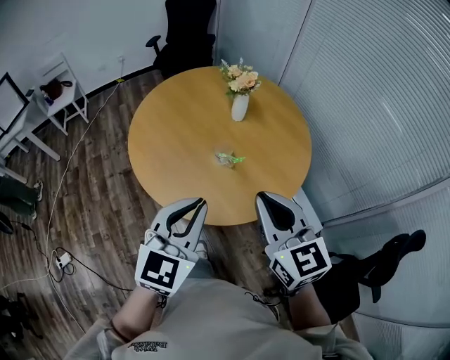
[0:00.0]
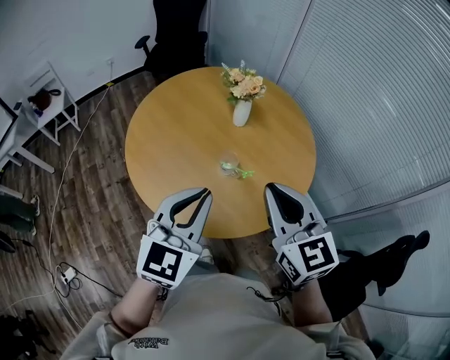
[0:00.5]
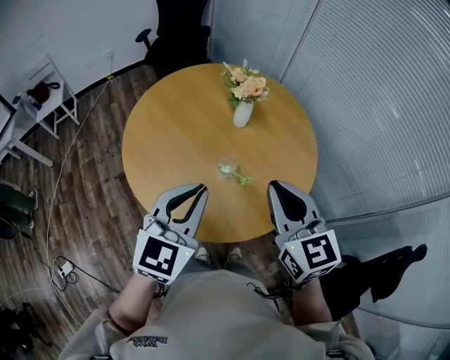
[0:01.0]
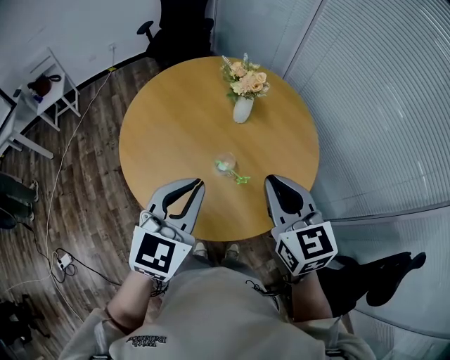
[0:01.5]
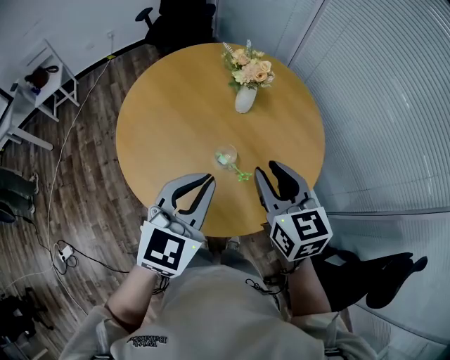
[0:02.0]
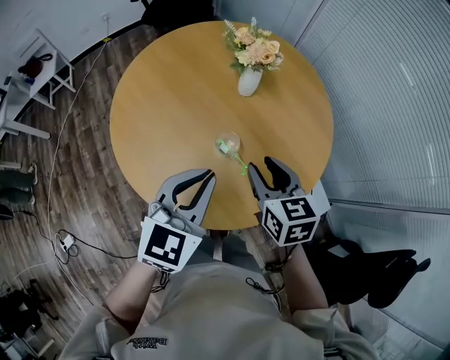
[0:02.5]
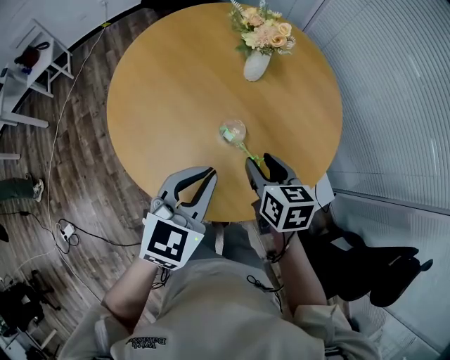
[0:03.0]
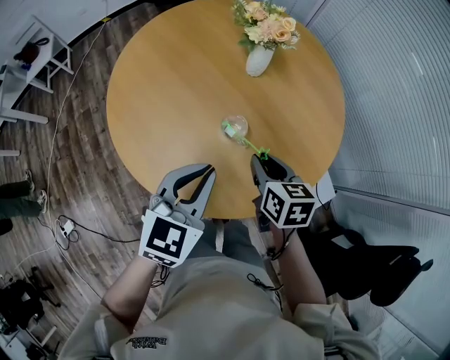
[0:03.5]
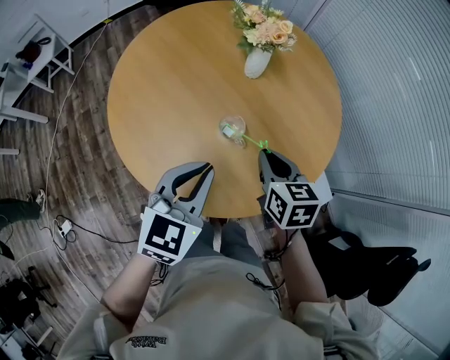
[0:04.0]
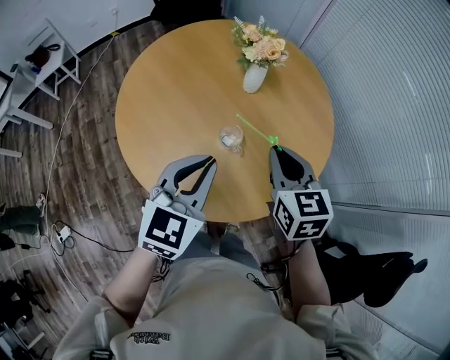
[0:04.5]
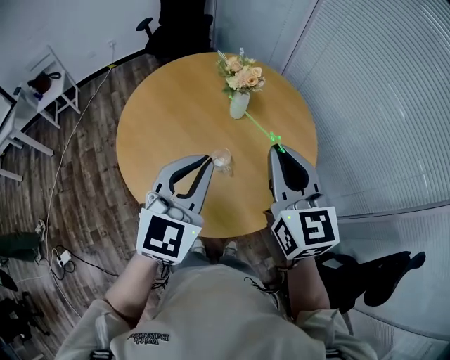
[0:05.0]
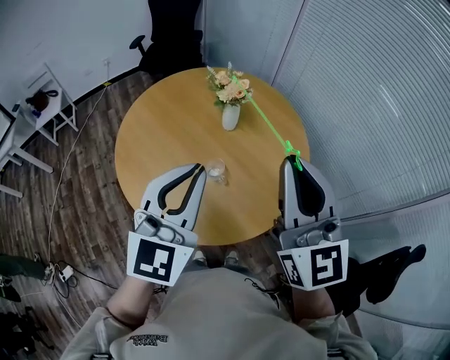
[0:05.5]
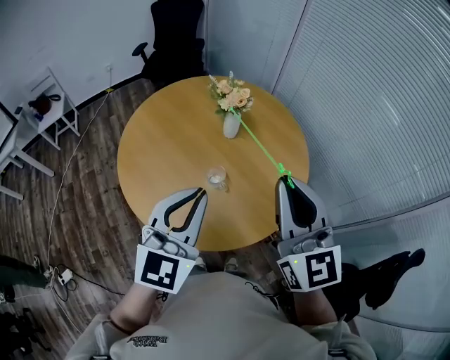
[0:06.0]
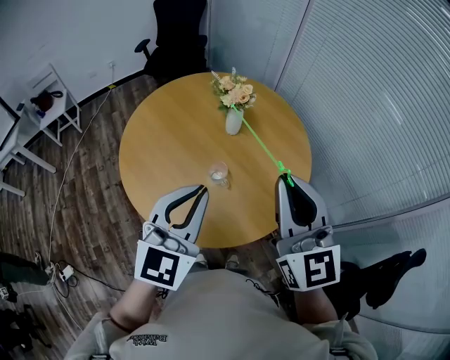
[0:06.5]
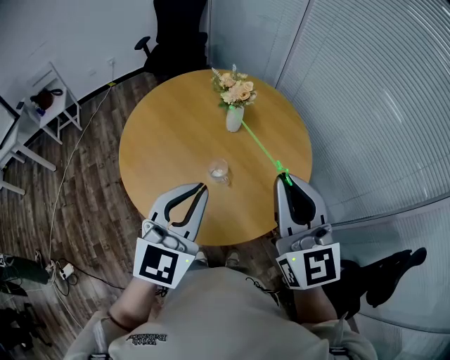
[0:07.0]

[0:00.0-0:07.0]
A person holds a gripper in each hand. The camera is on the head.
0:00.0 to 0:02.0: Both grippers travel together forward, some 15 cm.
0:02.0 to 0:03.5: The left gripper goes about 10 cm downward. The right gripper goes about 20 cm downward, and turns by some 30 degrees.
0:03.5 to 0:05.0: The right gripper is displaced upward by roughly 30 cm, and angles its fingers upward, by roughly 30 degrees. The left gripper shifts roughly 15 cm upward, and turns by about 20 degrees.
0:05.0 to 0:07.0: Both grippers travel together backward, about 5 cm.

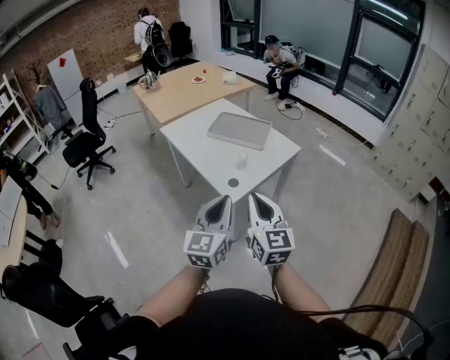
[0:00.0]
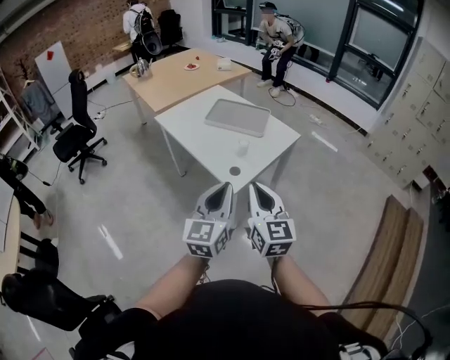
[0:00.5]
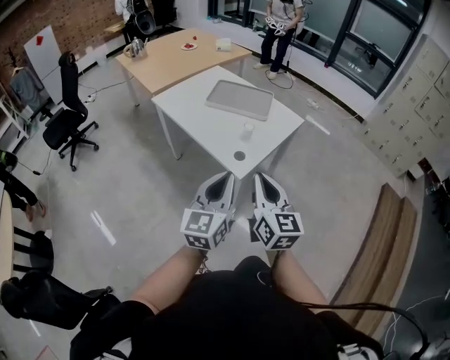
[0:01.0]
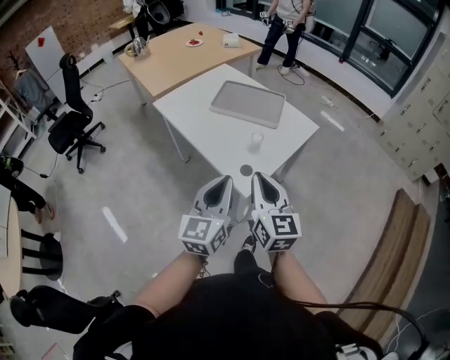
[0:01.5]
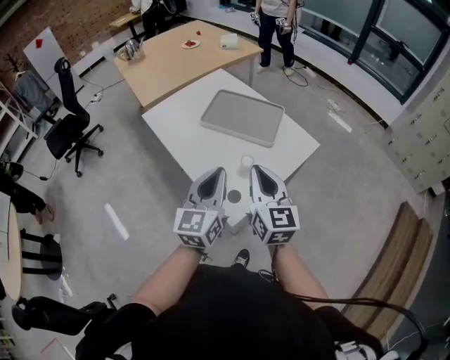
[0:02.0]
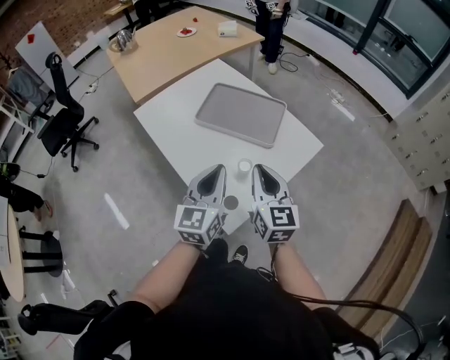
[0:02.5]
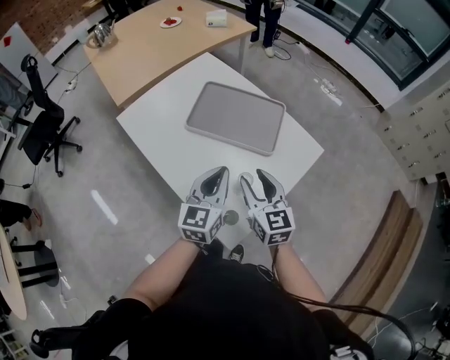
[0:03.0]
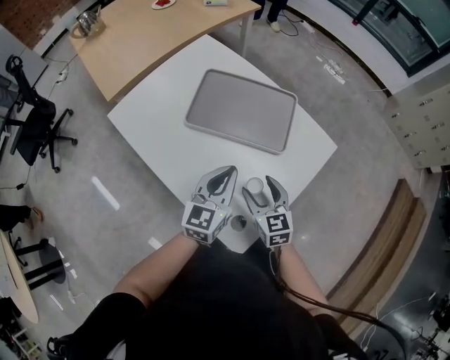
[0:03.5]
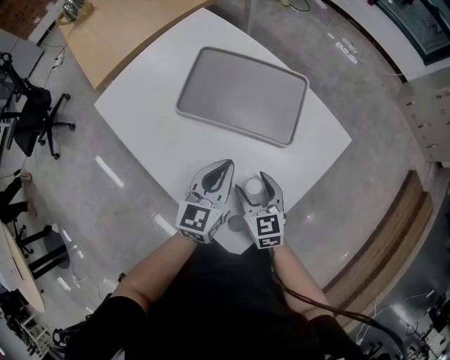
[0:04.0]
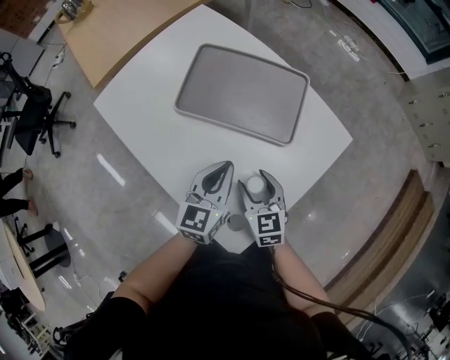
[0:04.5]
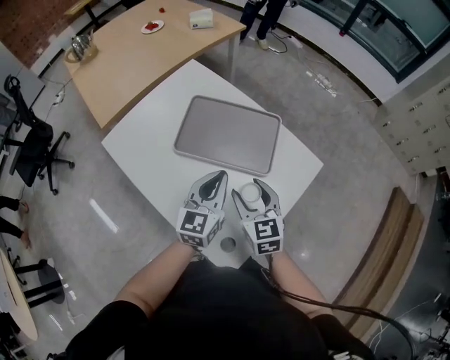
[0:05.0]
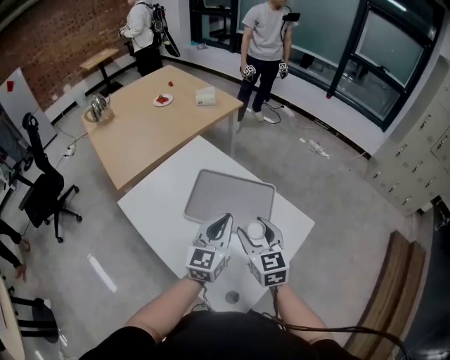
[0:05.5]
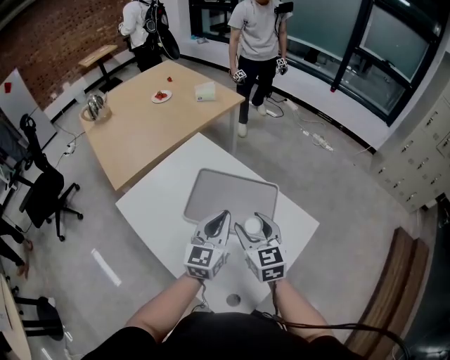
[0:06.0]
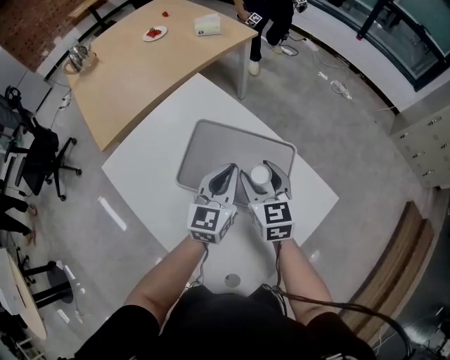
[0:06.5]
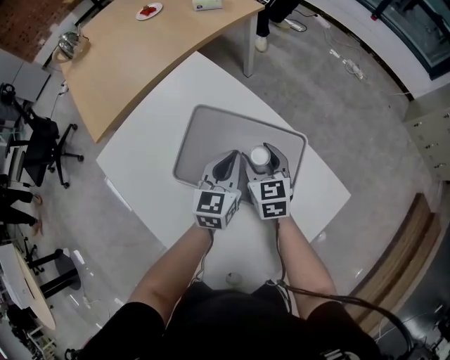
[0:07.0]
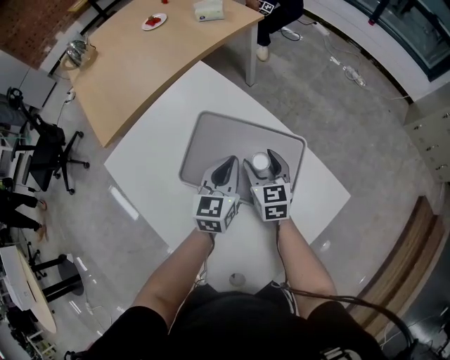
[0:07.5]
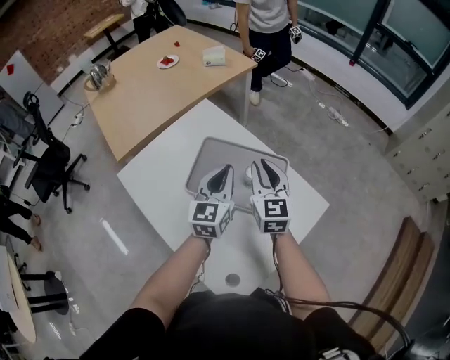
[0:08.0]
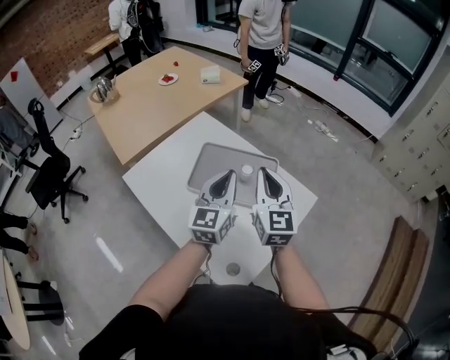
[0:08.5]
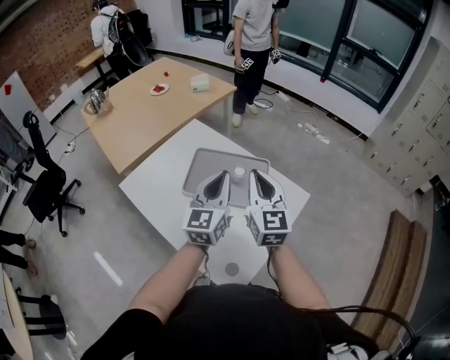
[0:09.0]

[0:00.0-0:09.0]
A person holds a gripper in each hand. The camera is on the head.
0:00.0 to 0:02.0: The two grippers go roughly 30 cm forward.
0:02.0 to 0:04.5: The left gripper goes roughly 35 cm forward and downward, and turns by about 20 degrees. Meanwhile the right gripper goes approximately 35 cm downward and forward, swivels about 30 degrees, and opens its fingers.
0:04.5 to 0:07.0: The grippers both shift forward by approximately 25 cm.
0:07.0 to 0:09.0: Both grippers travel together upward and backward, approximately 35 cm. The left gripper swivels approximately 20 degrees. Meanwhile the right gripper rotates roughly 30 degrees, and closes.

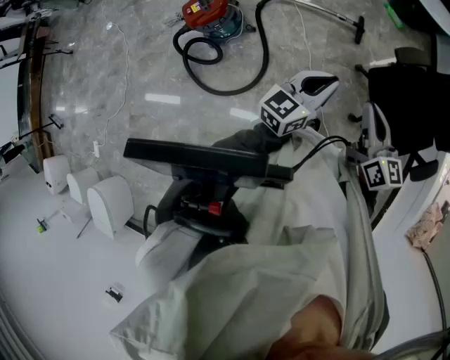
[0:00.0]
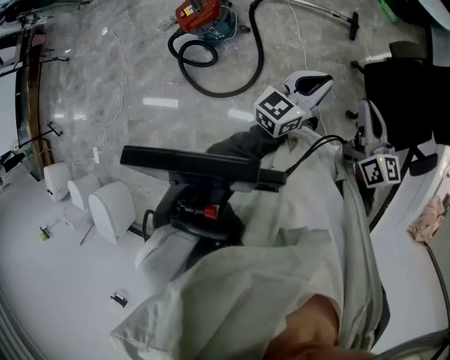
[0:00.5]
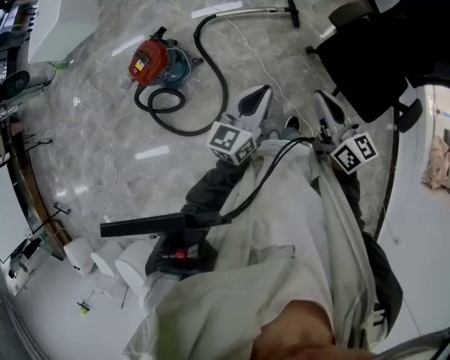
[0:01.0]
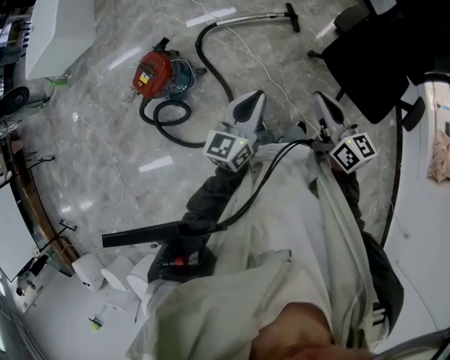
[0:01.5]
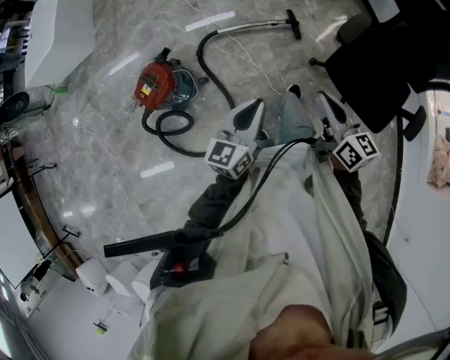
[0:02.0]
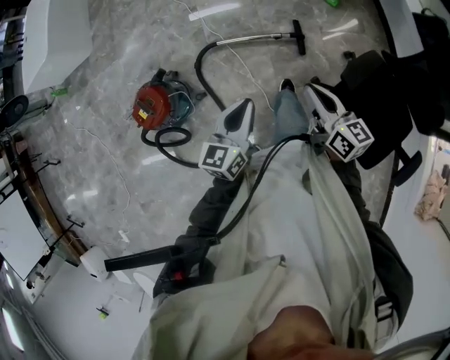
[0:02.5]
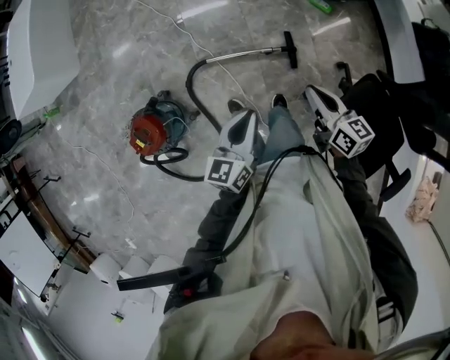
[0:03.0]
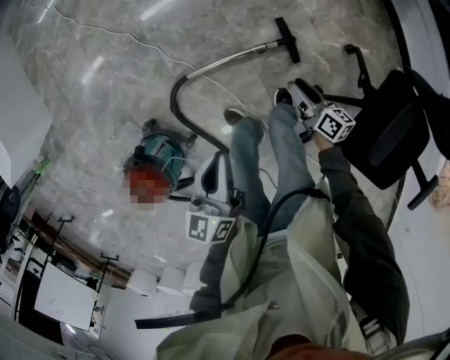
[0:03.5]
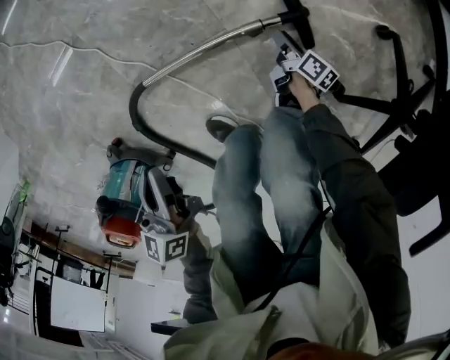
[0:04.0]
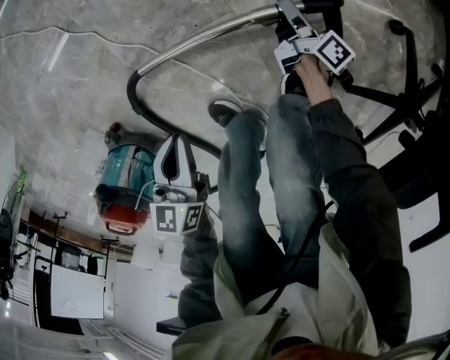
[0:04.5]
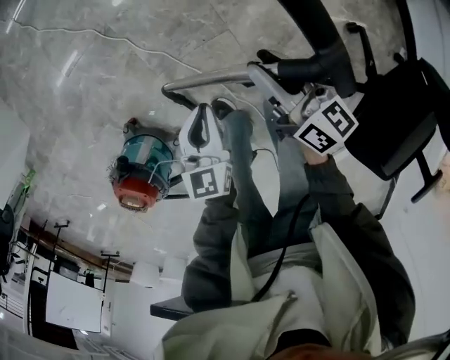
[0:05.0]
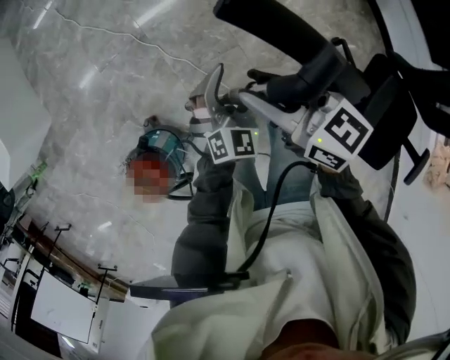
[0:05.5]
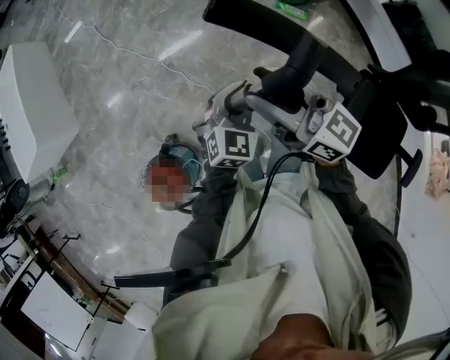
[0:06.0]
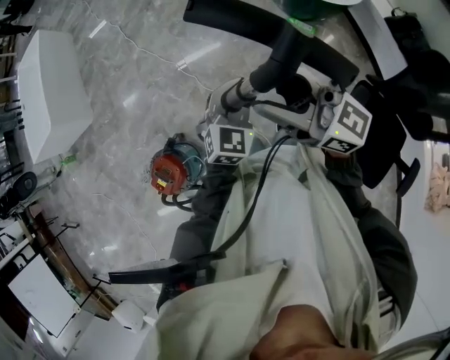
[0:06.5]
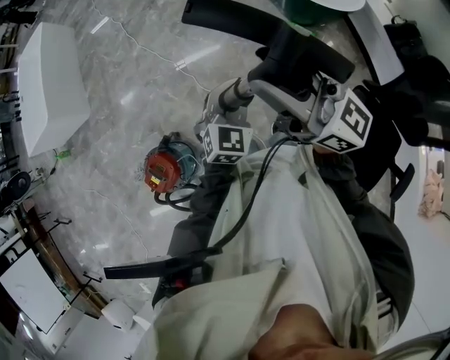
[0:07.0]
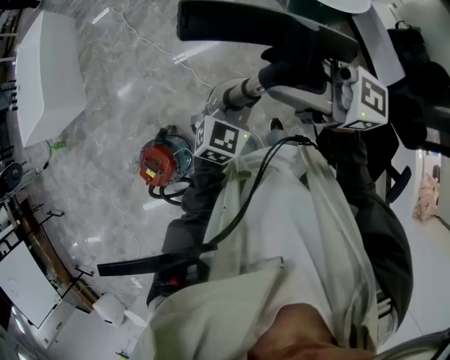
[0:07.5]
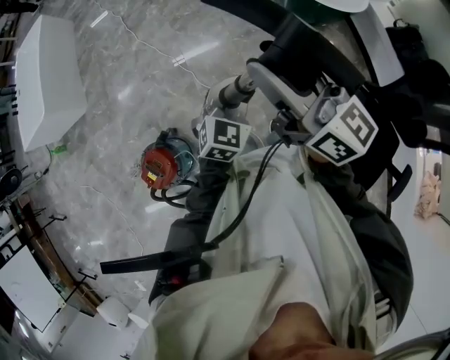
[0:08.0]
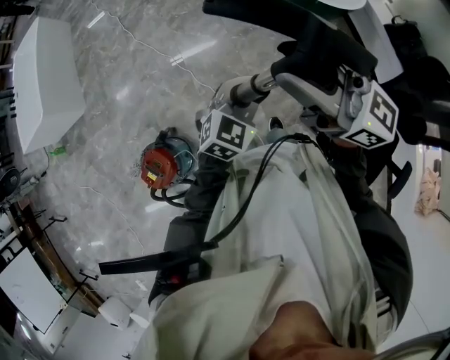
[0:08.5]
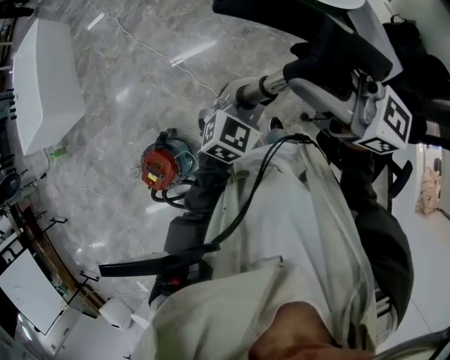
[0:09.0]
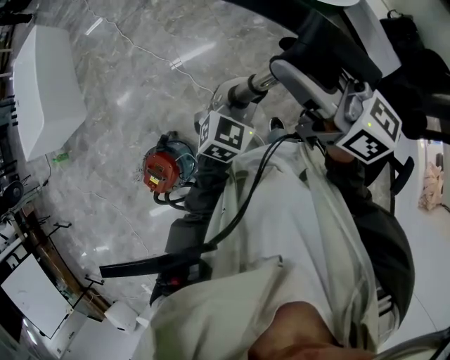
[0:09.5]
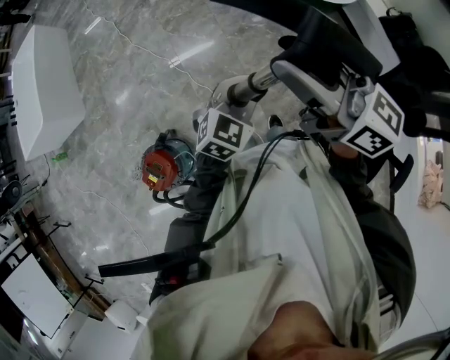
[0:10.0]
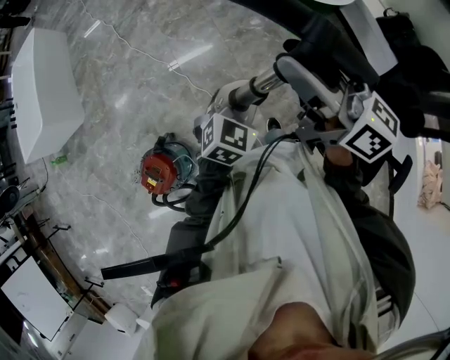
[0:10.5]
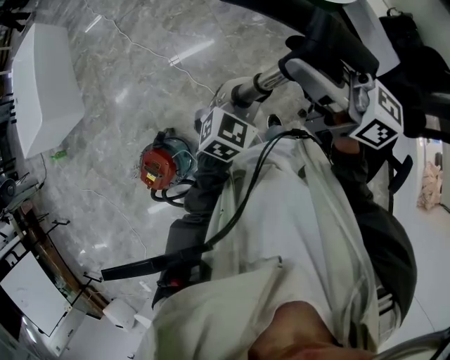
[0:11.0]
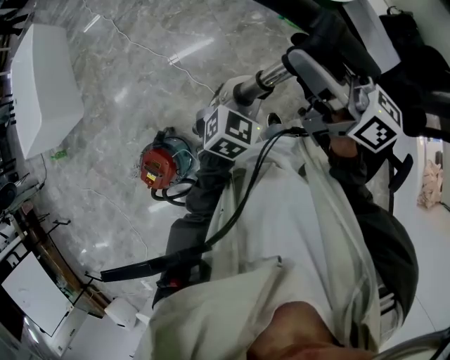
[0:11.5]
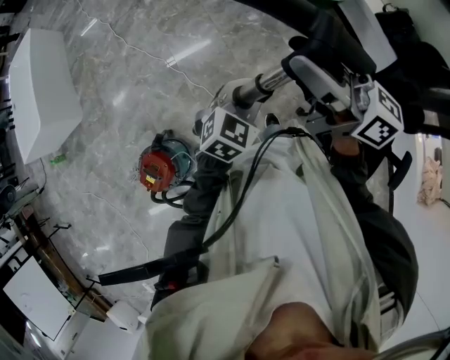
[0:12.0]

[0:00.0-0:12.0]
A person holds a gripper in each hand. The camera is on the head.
0:00.0 to 0:02.0: The left gripper shifts approximately 10 cm to the left and forward. The right gripper is displaced forward by roughly 10 cm.
0:02.0 to 0:04.0: The two grippers travel together, forward, about 50 cm. The right gripper heads downward, covering approximately 90 cm, twists roughly 40 degrees clockwise, seen from behind, and opens up; the left gripper heads downward, covering roughly 50 cm, and swivels approximately 20 degrees.
0:04.0 to 0:06.0: The left gripper goes approximately 40 cm upward, twists roughly 60 degrees clockwise, seen from behind, and opens, then closes once more. The right gripper heads upward, covering about 90 cm, and points its fingers roughly 50 degrees further upward.
0:06.0 to 0:08.0: The left gripper moves upward, approximately 10 cm. The right gripper moves upward, about 15 cm.
0:08.0 to 0:10.0: The left gripper moves roughly 5 cm.
0:10.0 to 0:12.0: There are only small adjustments of the grippers.
